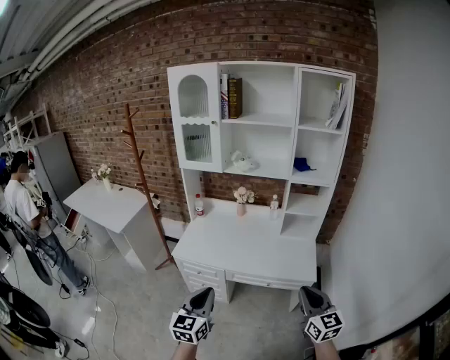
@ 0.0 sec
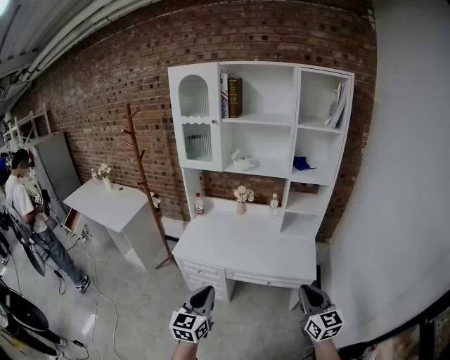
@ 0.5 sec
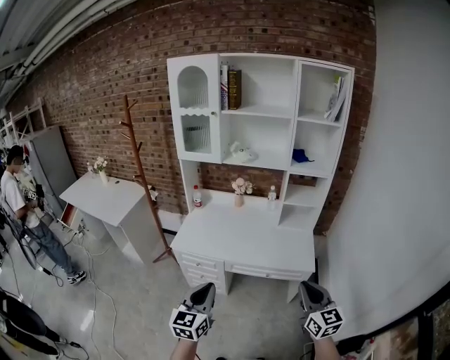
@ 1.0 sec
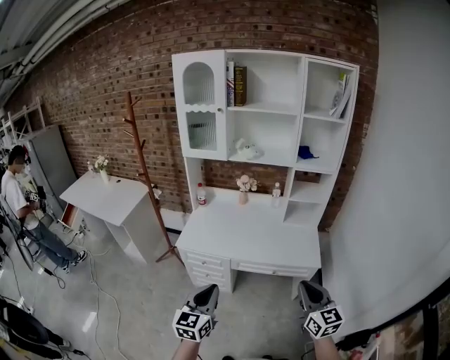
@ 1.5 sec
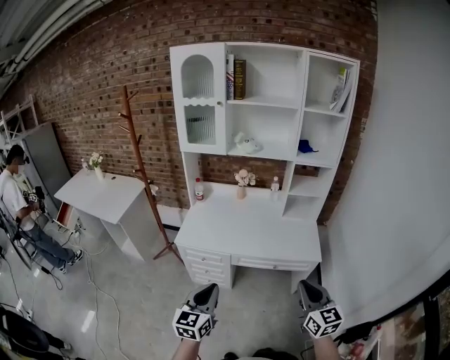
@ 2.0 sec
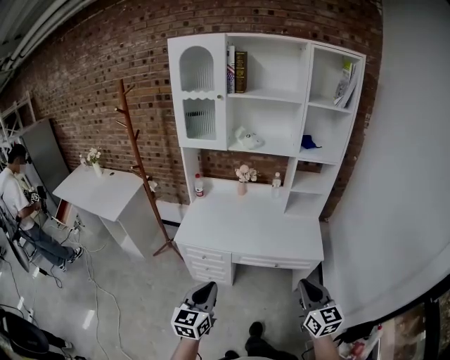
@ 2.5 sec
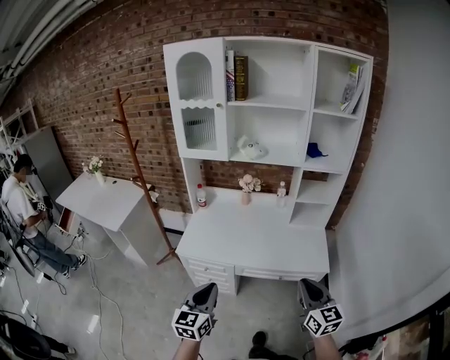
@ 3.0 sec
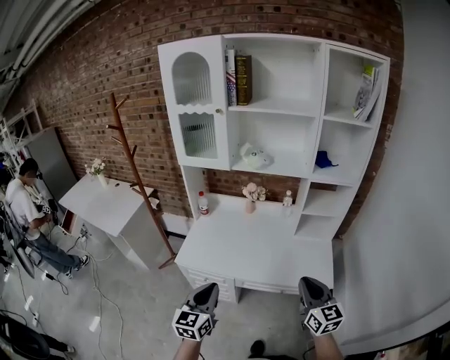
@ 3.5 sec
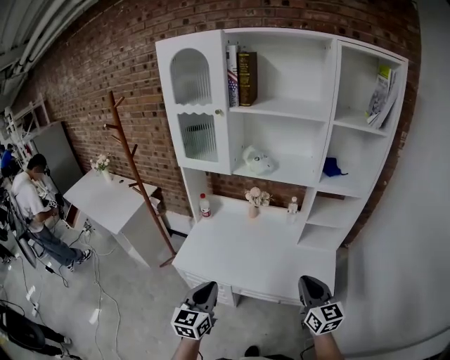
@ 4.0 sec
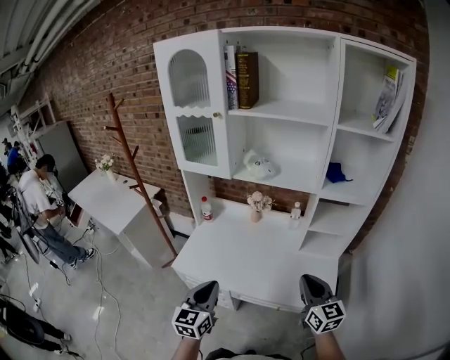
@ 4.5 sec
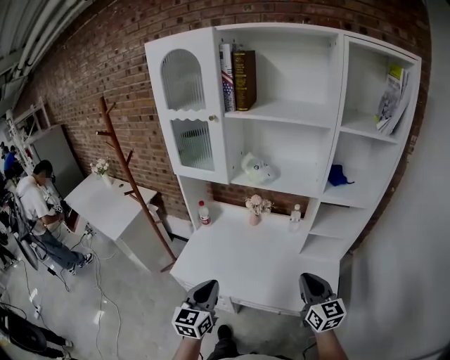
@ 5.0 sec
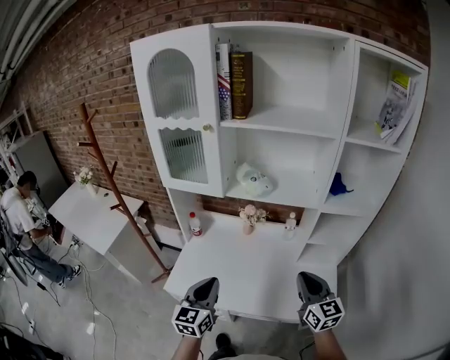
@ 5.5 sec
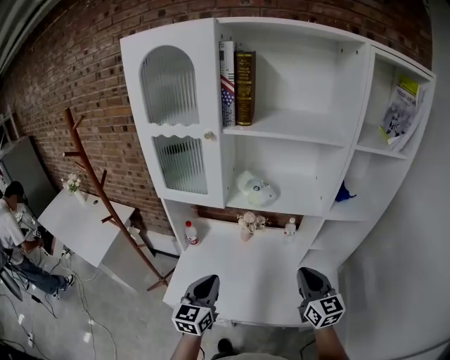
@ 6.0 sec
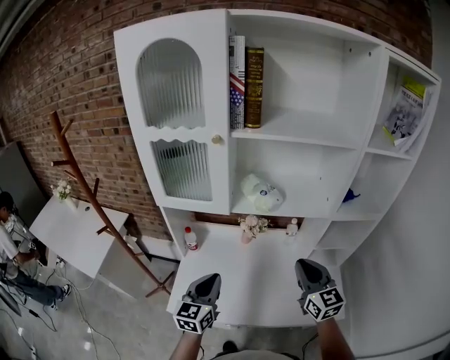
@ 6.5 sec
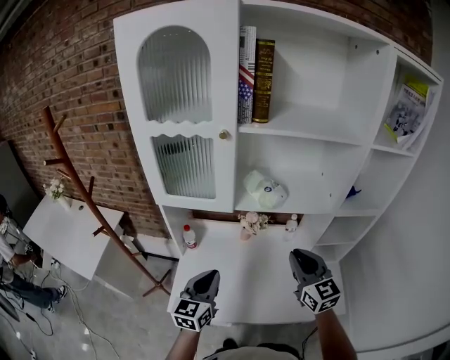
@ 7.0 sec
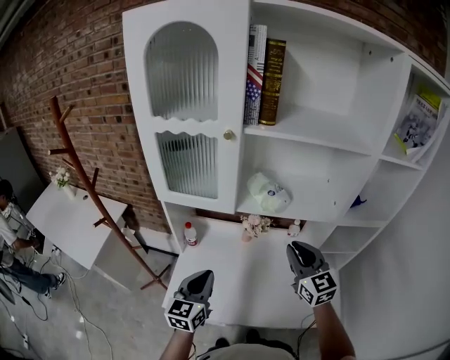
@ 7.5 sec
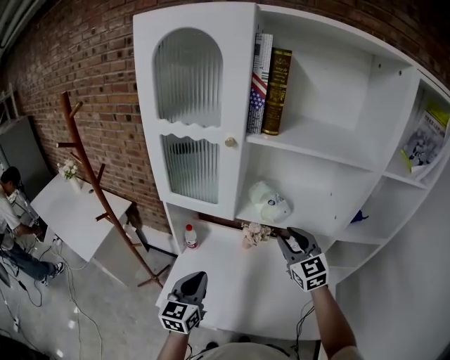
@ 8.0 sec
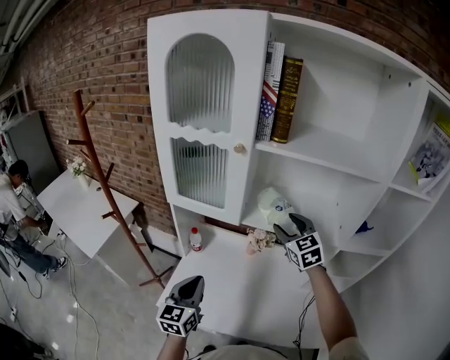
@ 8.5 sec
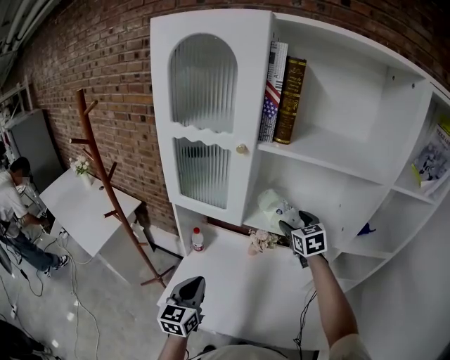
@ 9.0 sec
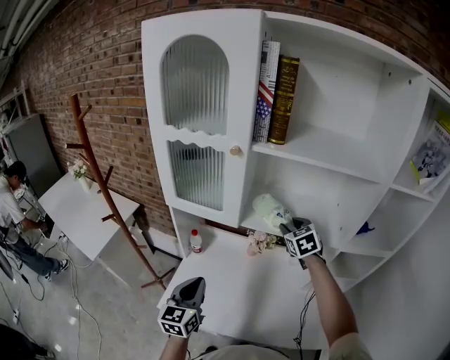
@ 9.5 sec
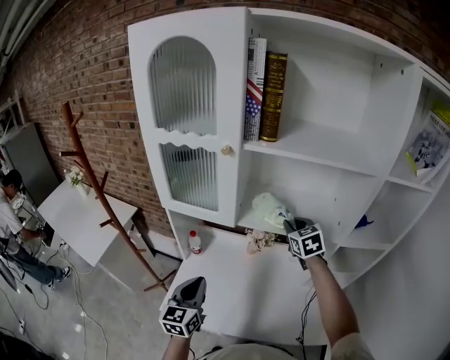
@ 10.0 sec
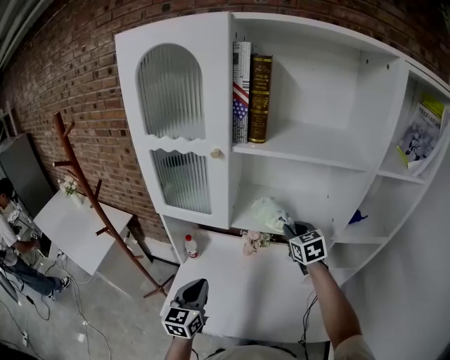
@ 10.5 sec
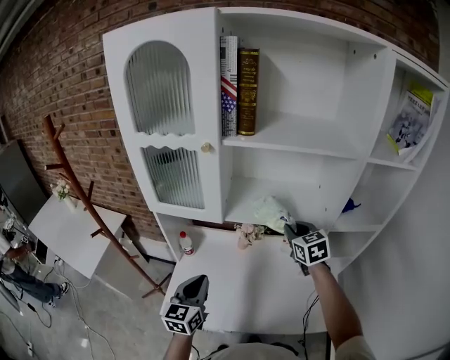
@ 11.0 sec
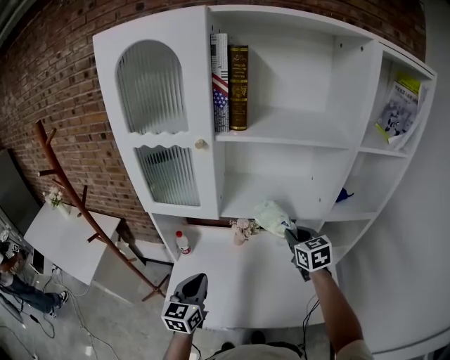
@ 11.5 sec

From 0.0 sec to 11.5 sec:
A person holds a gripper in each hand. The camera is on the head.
From 0.0 sec to 2.0 sec: The grippers both shift to the left by roughly 10 cm.
From 2.0 sec to 4.0 sec: The grippers both shift forward by some 25 cm.
From 4.0 sec to 6.0 sec: Both grippers travel together forward, roughly 20 cm.
From 6.0 sec to 7.5 sec: The right gripper travels forward and to the left by roughly 15 cm. The left gripper moves to the left and forward, some 10 cm.
From 7.5 sec to 9.5 sec: The right gripper moves forward, approximately 20 cm, changes its angle by about 30 degrees, and opens up.
From 9.5 sec to 11.5 sec: The right gripper goes about 15 cm backward and to the right.

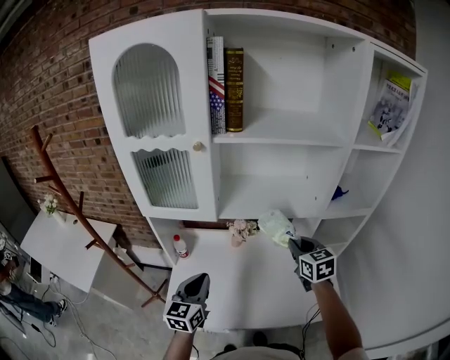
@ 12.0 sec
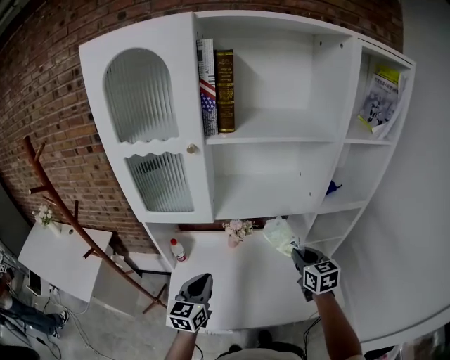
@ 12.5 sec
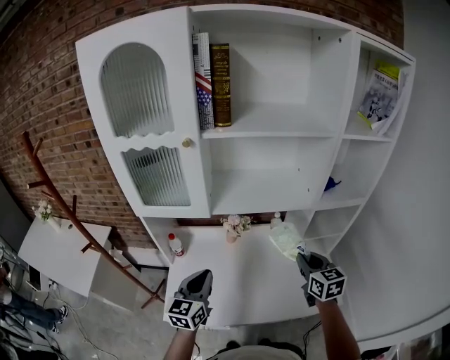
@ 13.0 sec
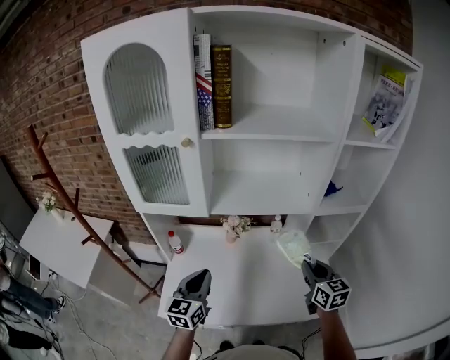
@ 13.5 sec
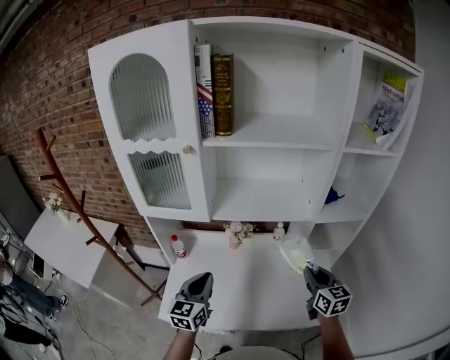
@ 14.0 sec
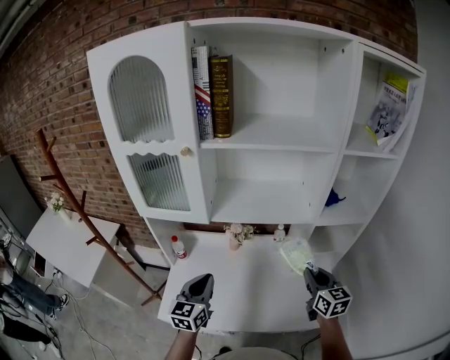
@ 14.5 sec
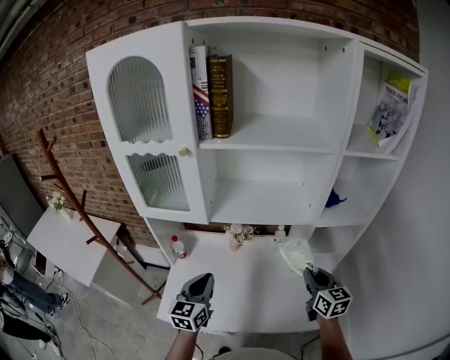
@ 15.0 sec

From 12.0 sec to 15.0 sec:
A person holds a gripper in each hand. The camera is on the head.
From 12.0 sec to 13.5 sec: The right gripper is displaced backward and to the right by roughly 10 cm.
From 13.5 sec to 15.0 sec: The grippers stay close to where they were, moving slightly.

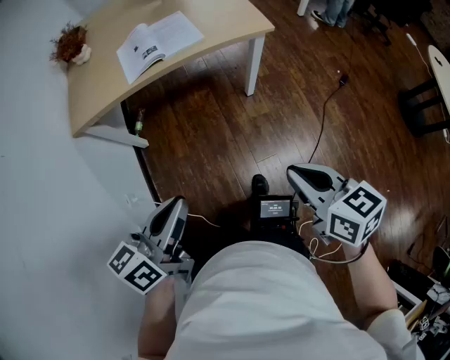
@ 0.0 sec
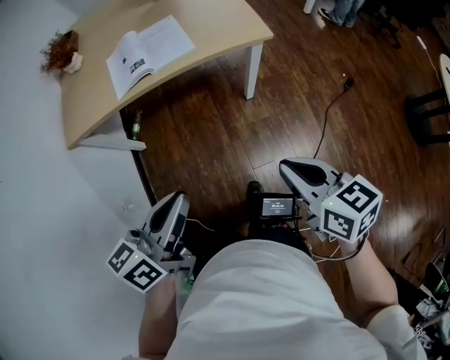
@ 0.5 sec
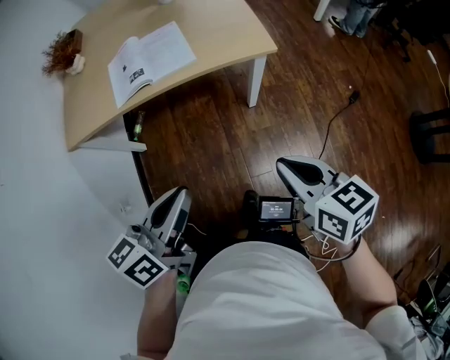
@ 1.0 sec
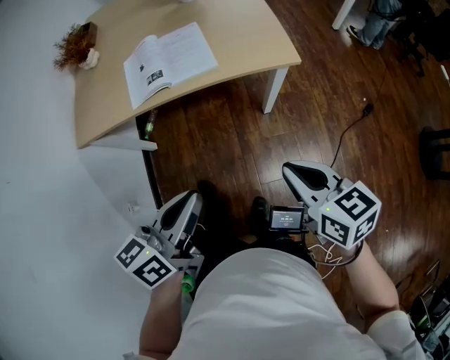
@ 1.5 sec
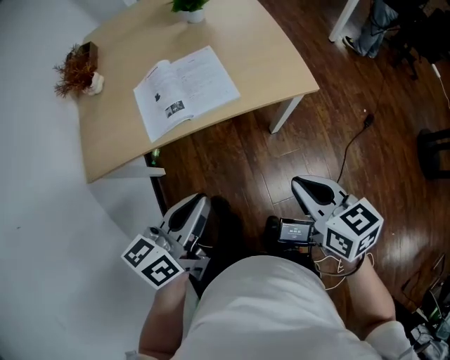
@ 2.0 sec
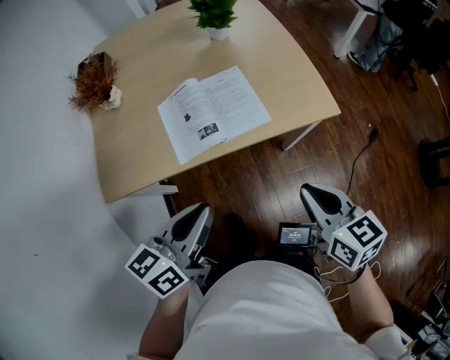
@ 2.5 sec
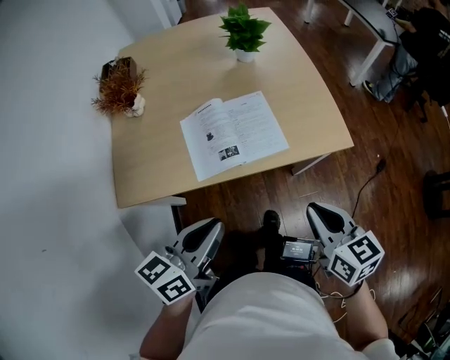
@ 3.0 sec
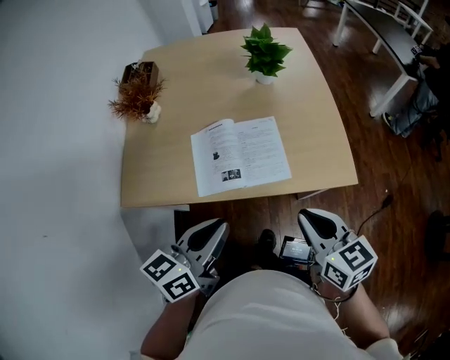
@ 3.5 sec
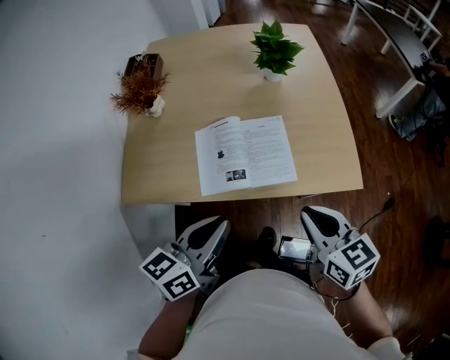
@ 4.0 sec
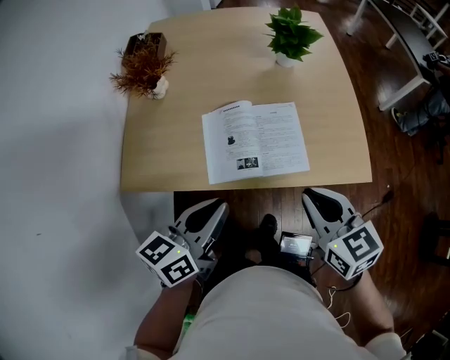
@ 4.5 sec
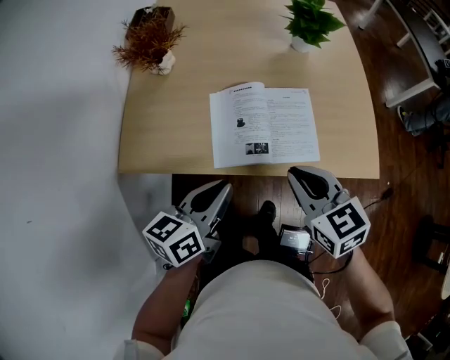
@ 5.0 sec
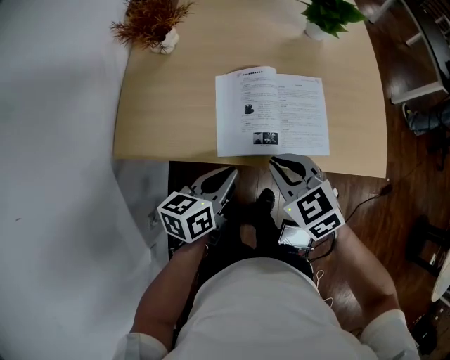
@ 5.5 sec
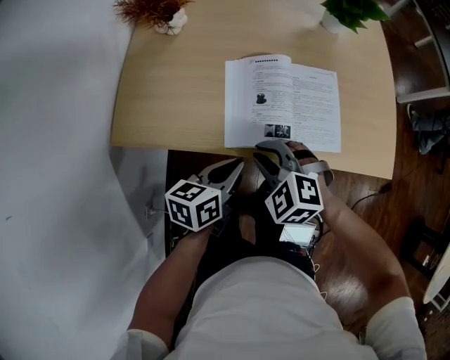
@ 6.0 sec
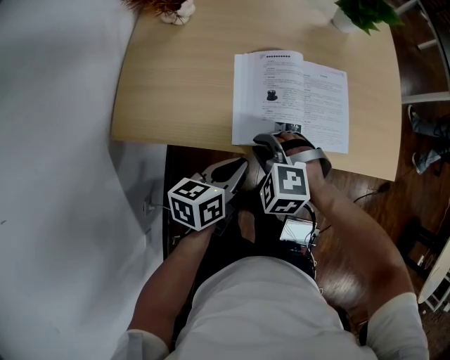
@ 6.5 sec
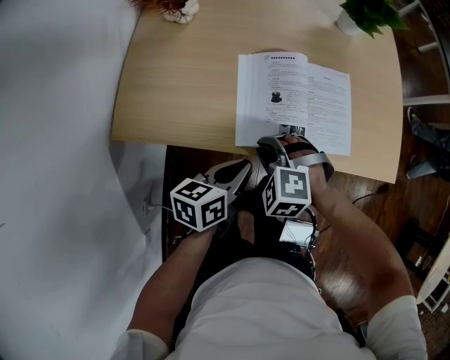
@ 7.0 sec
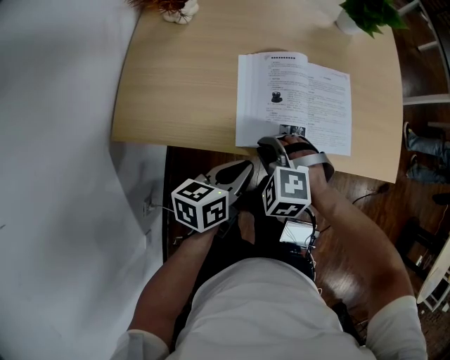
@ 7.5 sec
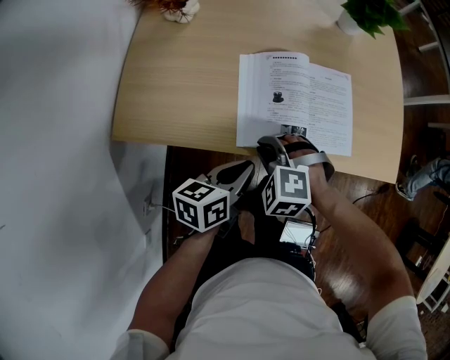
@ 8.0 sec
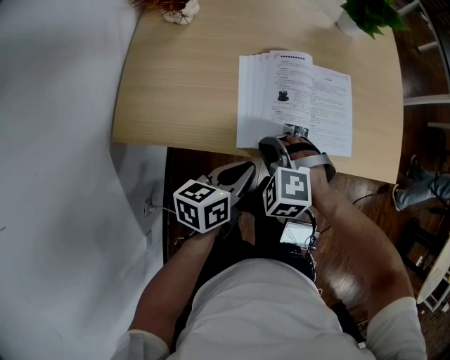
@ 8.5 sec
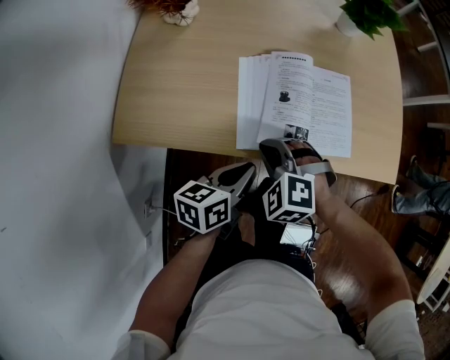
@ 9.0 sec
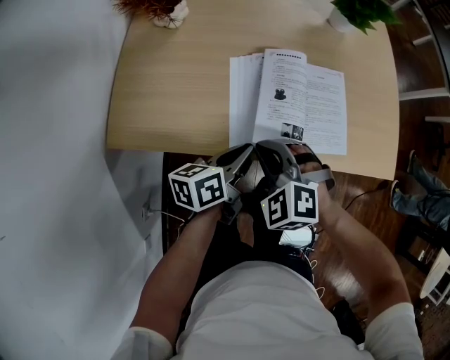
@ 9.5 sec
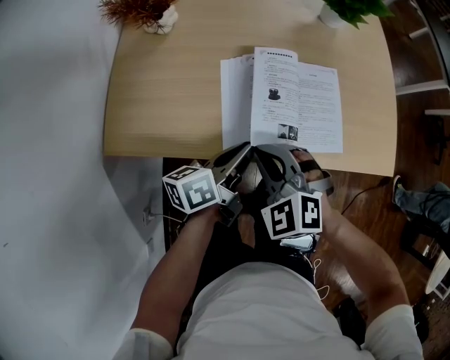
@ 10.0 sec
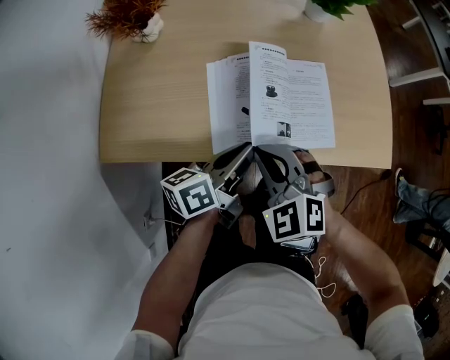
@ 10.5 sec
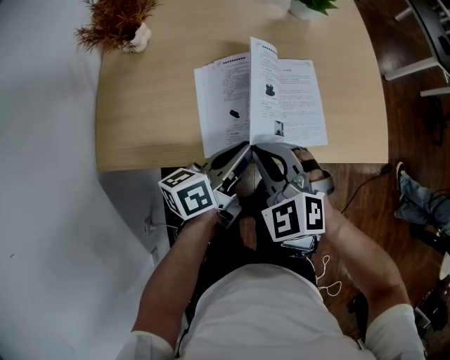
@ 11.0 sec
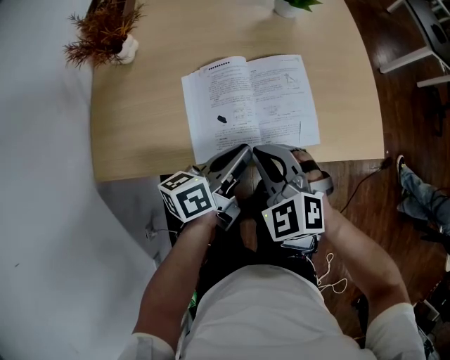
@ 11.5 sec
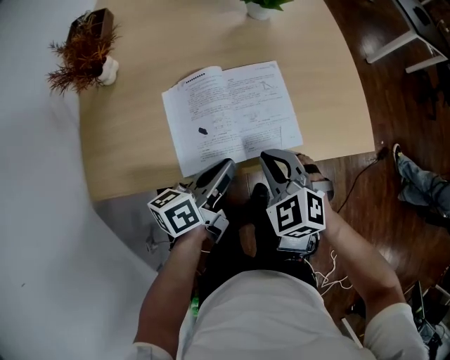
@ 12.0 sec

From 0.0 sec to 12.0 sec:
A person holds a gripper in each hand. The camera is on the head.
From 0.0 sec to 2.0 sec: Both grippers travel together forward, approximately 30 cm.
From 2.0 sec to 4.0 sec: Both grippers move forward and to the left, about 20 cm.
From 4.0 sec to 6.0 sec: The left gripper heads downward, covering about 20 cm; the right gripper is displaced to the left and downward by roughly 30 cm, and rolls counterclockwise, seen from behind, by some 60 degrees.
From 6.0 sec to 8.0 sec: The right gripper moves some 5 cm.
From 8.0 sec to 10.0 sec: The right gripper moves upward, some 5 cm, and rotates about 30 degrees; the left gripper is displaced forward by roughly 5 cm.
From 10.0 sec to 12.0 sec: The left gripper shifts about 10 cm to the right. Meanwhile the right gripper travels to the right by about 15 cm.
